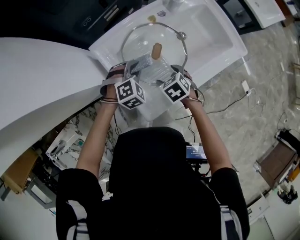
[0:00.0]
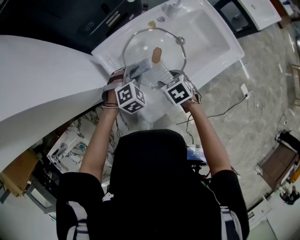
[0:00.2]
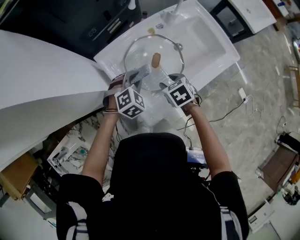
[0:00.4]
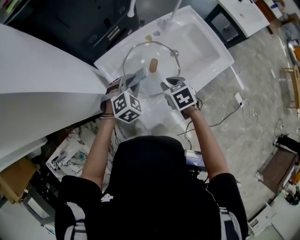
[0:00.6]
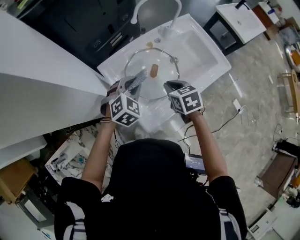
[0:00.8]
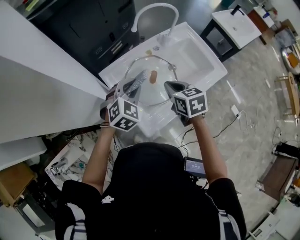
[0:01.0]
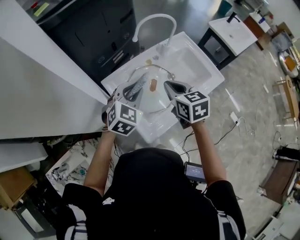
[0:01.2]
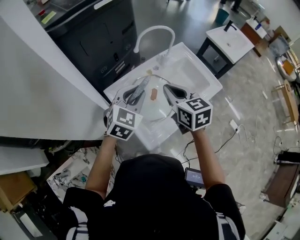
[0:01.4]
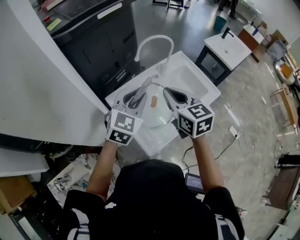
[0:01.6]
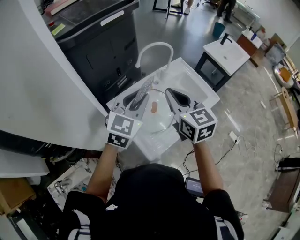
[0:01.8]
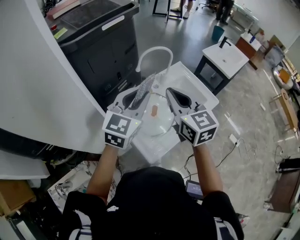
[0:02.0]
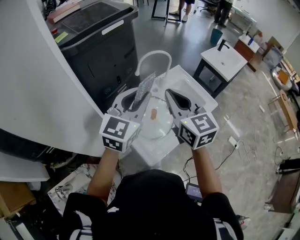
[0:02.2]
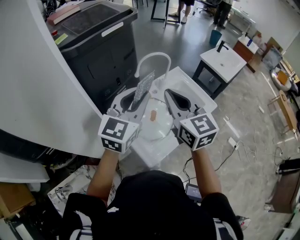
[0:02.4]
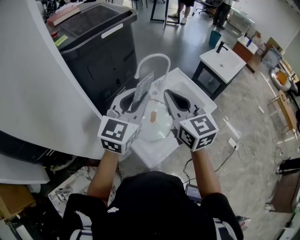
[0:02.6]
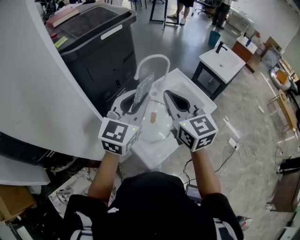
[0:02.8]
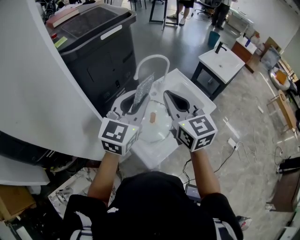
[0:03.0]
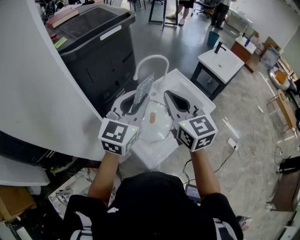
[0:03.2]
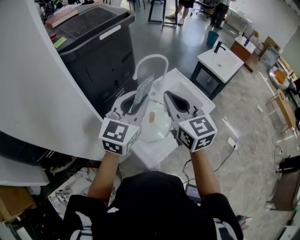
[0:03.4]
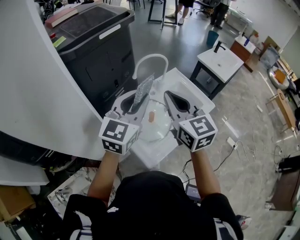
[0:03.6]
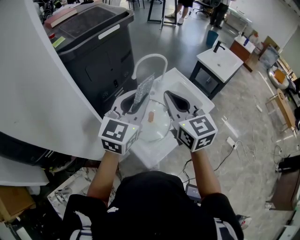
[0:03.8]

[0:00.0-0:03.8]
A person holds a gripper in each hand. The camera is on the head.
0:00.0 to 0:01.2: The two grippers go about 25 cm upward. The left gripper rotates approximately 30 degrees; the right gripper angles its fingers upward, by about 30 degrees, and closes.
0:01.2 to 0:02.6: Both grippers travel together upward, about 20 cm. The right gripper changes its angle by about 30 degrees. The left gripper rotates some 30 degrees.
0:02.6 to 0:03.8: Neither gripper changes place.

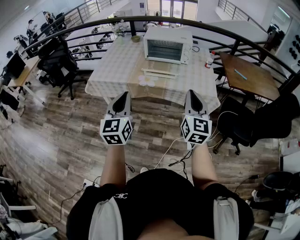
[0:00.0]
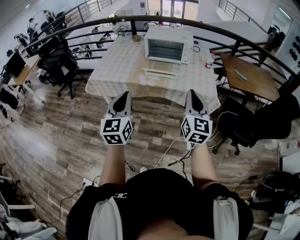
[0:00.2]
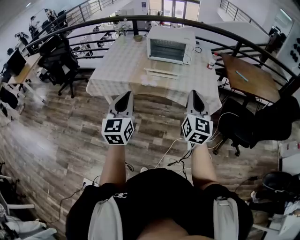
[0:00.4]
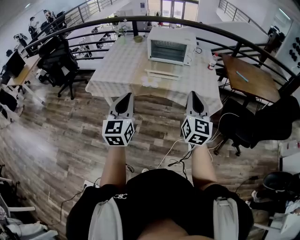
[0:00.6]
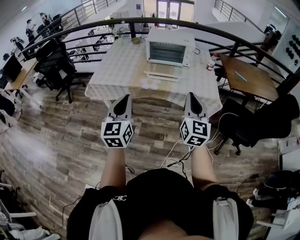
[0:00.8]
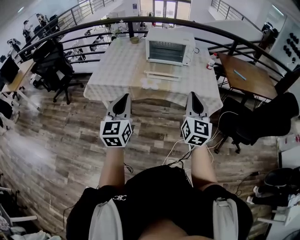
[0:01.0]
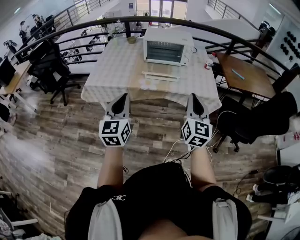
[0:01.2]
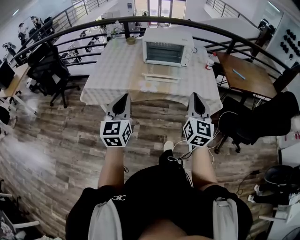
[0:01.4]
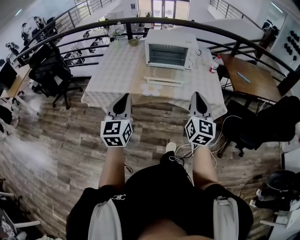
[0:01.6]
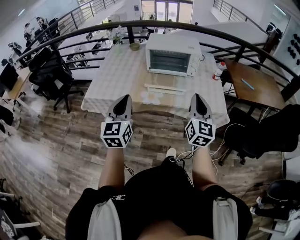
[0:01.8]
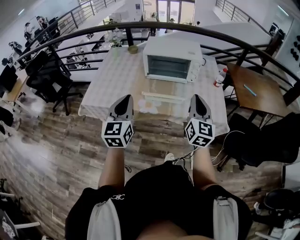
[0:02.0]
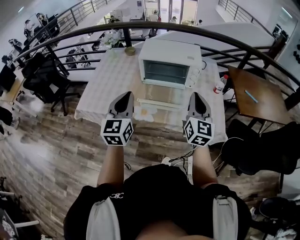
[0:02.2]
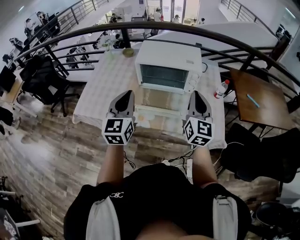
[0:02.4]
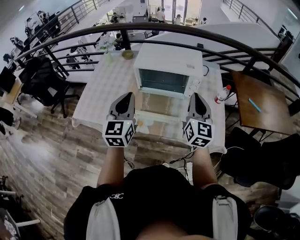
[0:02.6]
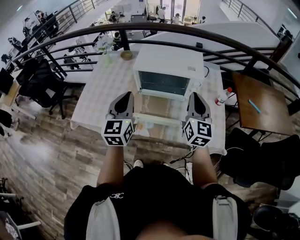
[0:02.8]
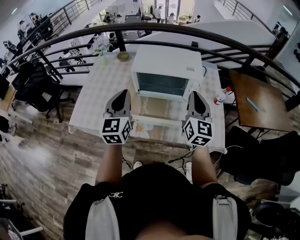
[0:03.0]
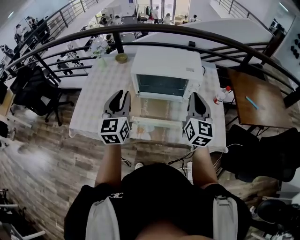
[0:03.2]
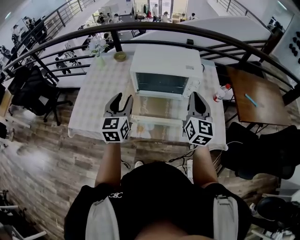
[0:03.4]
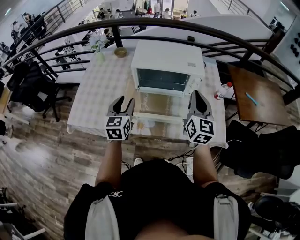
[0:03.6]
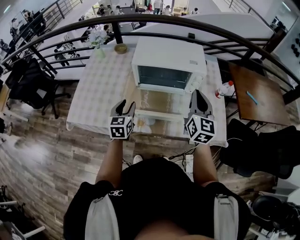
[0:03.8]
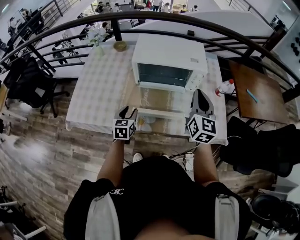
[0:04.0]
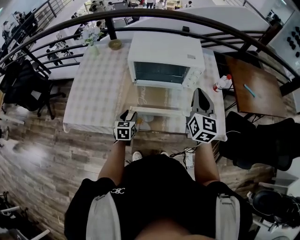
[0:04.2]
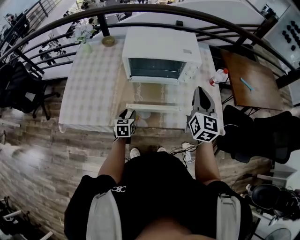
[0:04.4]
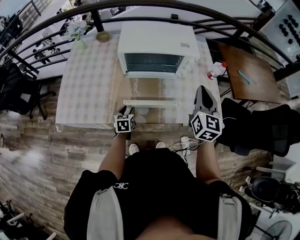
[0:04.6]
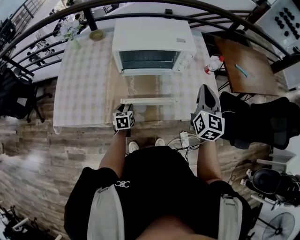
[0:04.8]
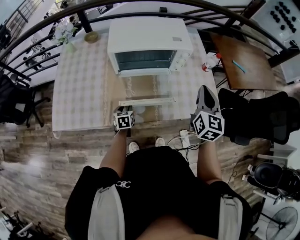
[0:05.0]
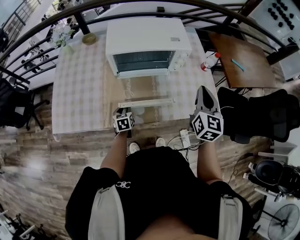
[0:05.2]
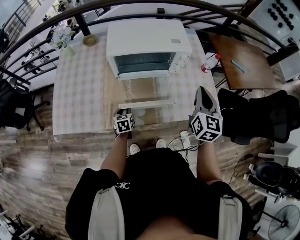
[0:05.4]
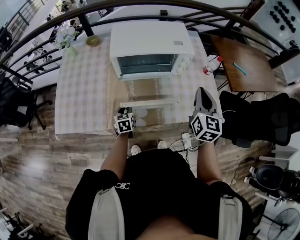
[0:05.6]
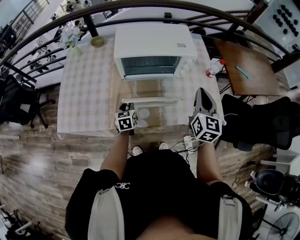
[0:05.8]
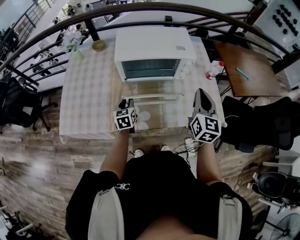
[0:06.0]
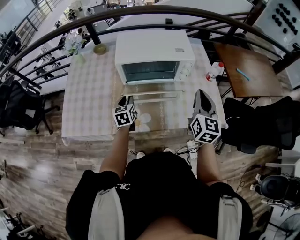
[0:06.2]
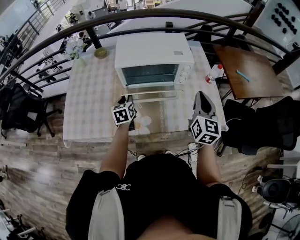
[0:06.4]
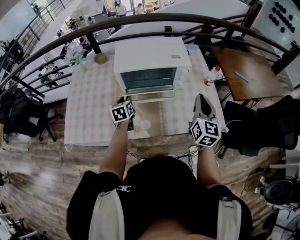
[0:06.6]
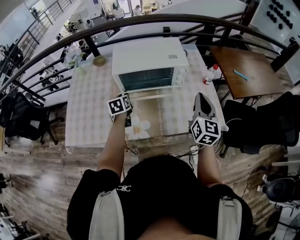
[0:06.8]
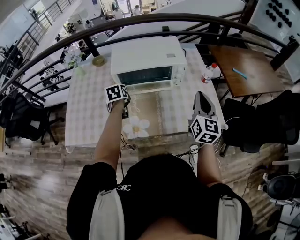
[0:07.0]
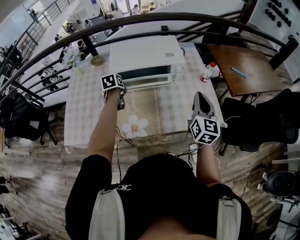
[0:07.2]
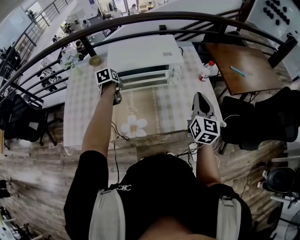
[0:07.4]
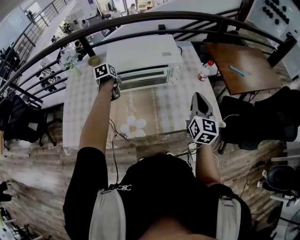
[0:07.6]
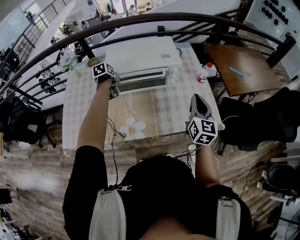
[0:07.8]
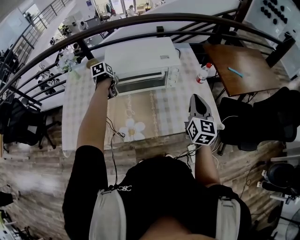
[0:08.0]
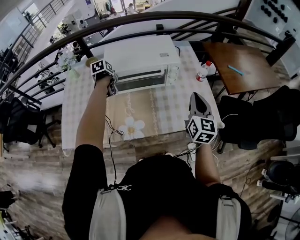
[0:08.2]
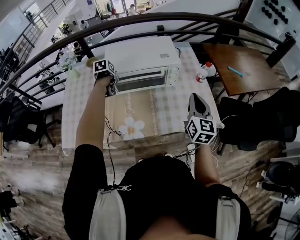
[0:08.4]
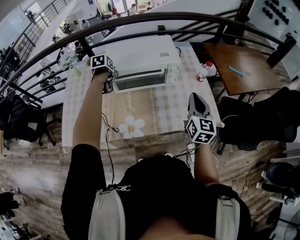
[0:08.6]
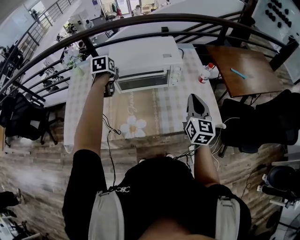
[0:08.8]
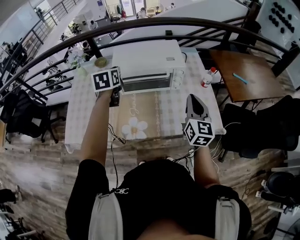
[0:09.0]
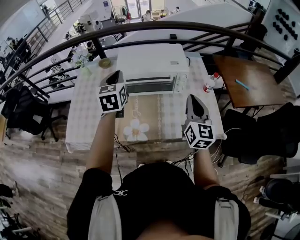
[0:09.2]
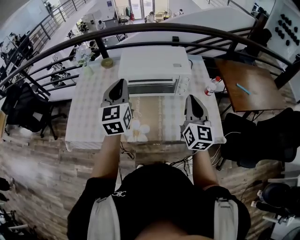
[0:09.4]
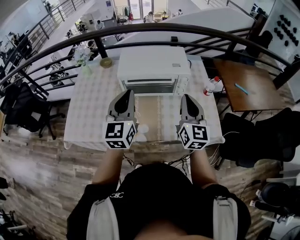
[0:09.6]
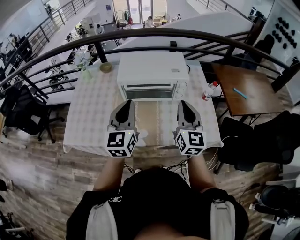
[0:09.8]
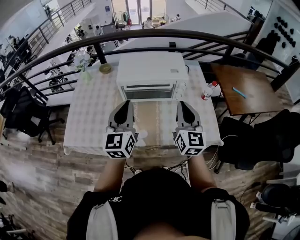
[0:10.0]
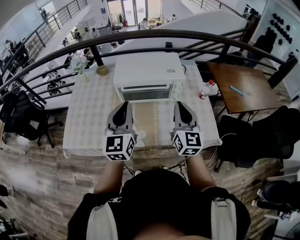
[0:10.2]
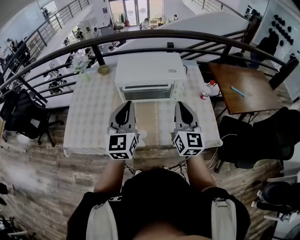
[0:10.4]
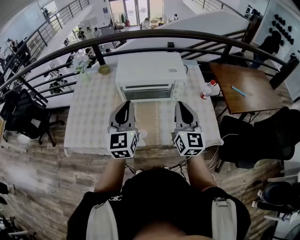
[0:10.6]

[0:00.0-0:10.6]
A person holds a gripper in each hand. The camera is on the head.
0:00.0 to 0:01.6: The two grippers go about 15 cm forward and to the left.
0:01.6 to 0:03.0: The grippers both shift forward by some 35 cm.
0:03.0 to 0:04.6: The right gripper moves downward, approximately 5 cm. Meanwhile the left gripper moves downward, about 35 cm, tilts its fingers approximately 40 degrees downward, and opens.
0:04.6 to 0:06.0: The left gripper goes roughly 10 cm upward and forward.
0:06.0 to 0:07.6: The right gripper shifts by some 5 cm. The left gripper moves forward and upward, roughly 15 cm, and rotates some 30 degrees.
0:07.6 to 0:09.0: The left gripper goes roughly 15 cm upward, and turns by some 30 degrees.
0:09.0 to 0:10.6: The left gripper goes approximately 20 cm backward, and tips its fingers upward by about 30 degrees. Meanwhile the right gripper travels to the left by about 5 cm.

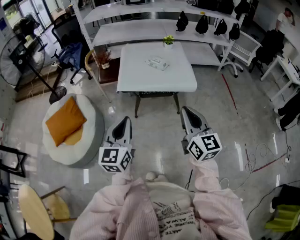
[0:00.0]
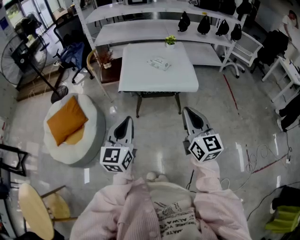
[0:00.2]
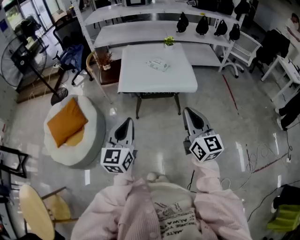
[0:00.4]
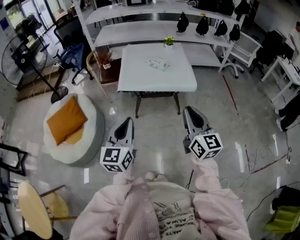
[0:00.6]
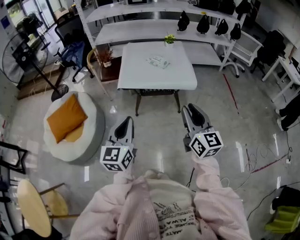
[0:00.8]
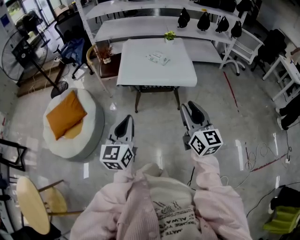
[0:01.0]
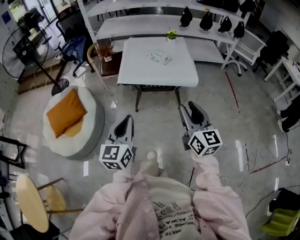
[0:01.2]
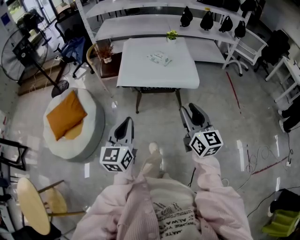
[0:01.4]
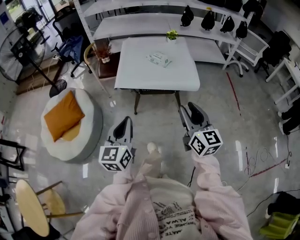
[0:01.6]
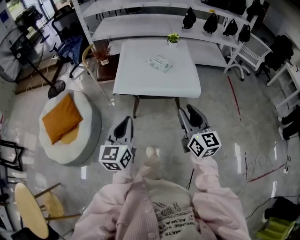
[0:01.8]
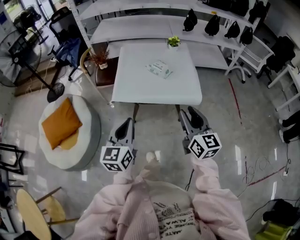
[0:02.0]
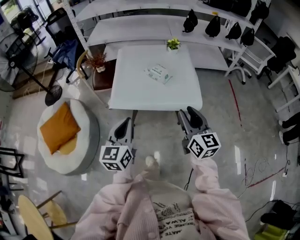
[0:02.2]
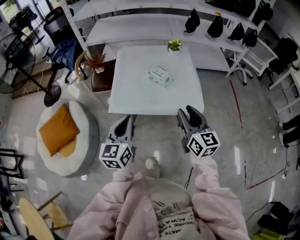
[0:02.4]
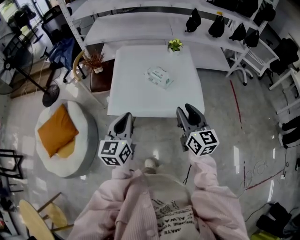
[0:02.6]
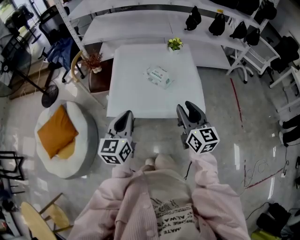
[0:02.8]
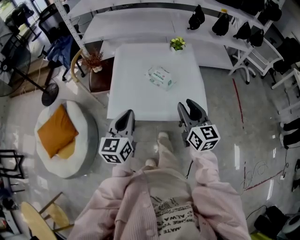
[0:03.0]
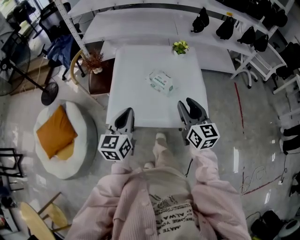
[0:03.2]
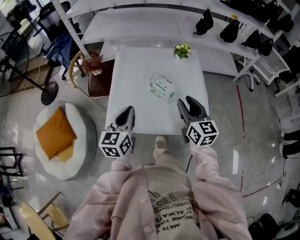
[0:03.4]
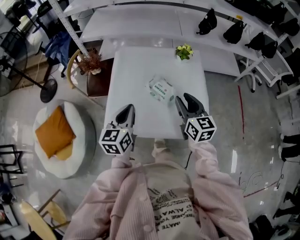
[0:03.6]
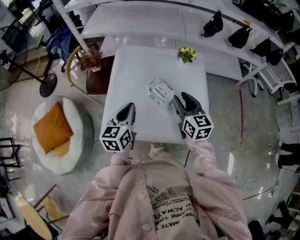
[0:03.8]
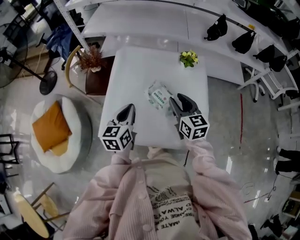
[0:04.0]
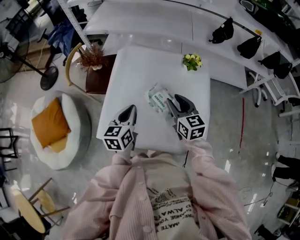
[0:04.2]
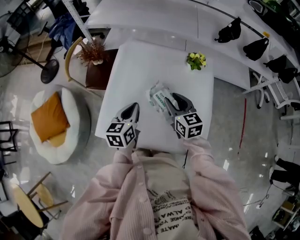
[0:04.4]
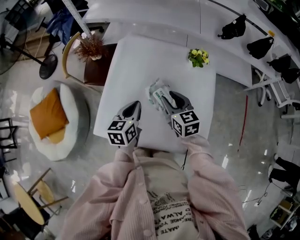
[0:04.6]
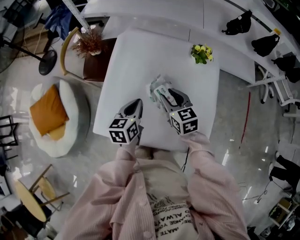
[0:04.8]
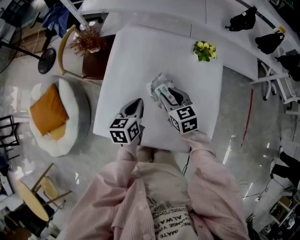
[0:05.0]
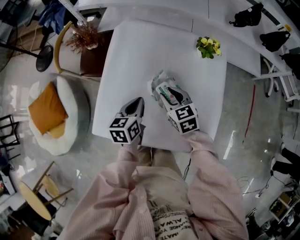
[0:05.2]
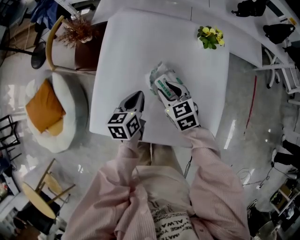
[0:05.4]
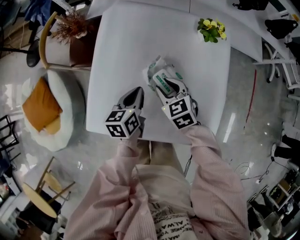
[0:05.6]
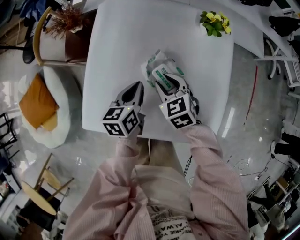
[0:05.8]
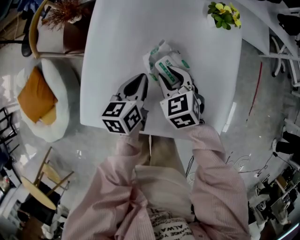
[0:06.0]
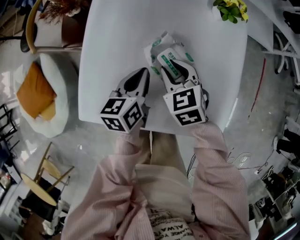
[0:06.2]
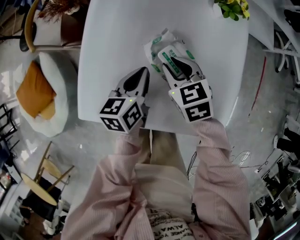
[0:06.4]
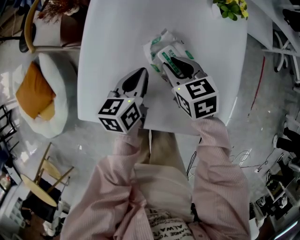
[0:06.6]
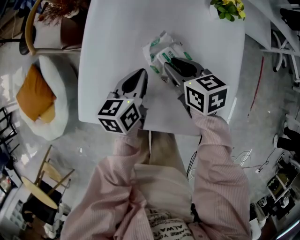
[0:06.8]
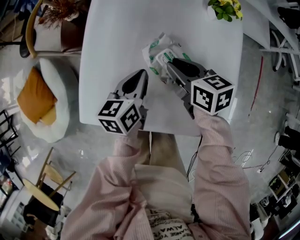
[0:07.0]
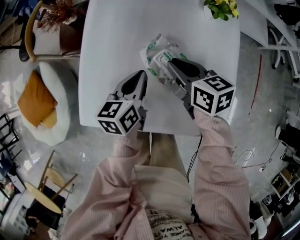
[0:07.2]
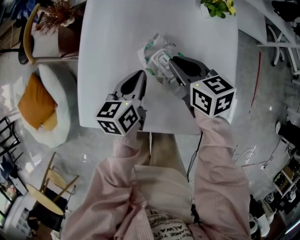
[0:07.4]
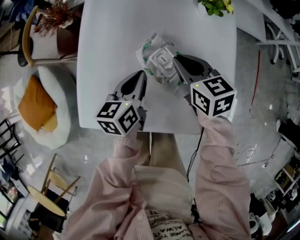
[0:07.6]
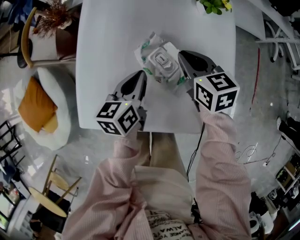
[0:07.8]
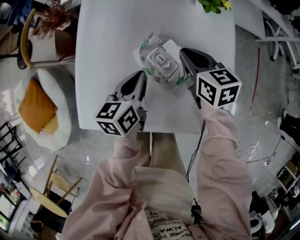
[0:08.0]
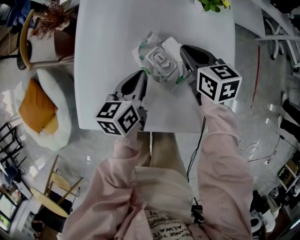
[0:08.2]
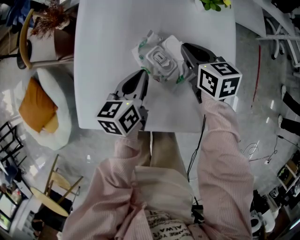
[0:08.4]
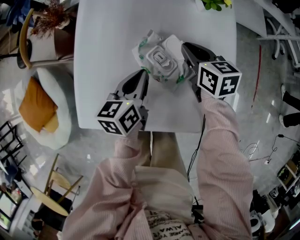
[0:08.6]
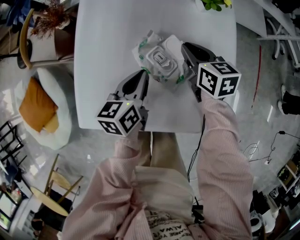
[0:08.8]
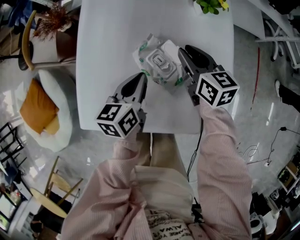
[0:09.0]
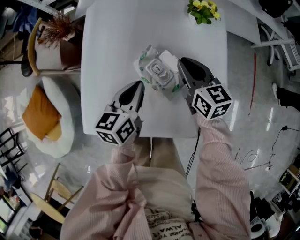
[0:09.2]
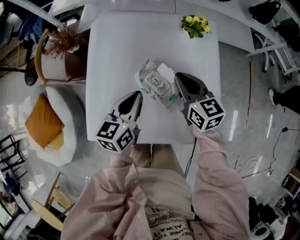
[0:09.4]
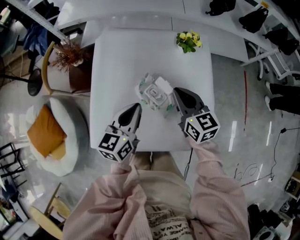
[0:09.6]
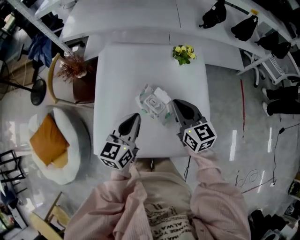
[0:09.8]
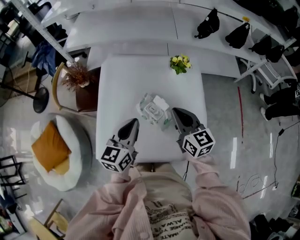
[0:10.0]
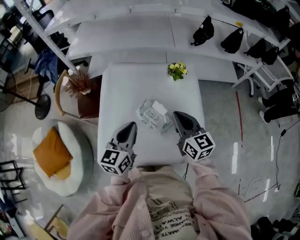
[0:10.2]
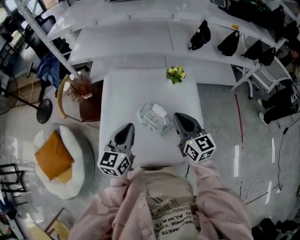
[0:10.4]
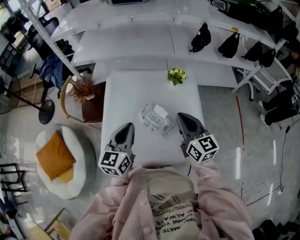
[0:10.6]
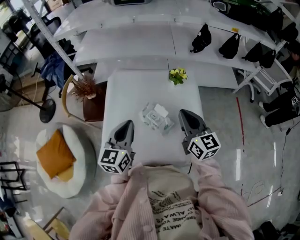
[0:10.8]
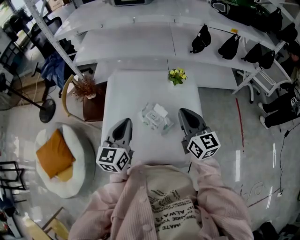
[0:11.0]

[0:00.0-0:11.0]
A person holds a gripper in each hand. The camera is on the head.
0:00.0 to 0:01.6: The left gripper moves approximately 5 cm; the right gripper heads forward and downward, covering roughly 10 cm, and opens up.
0:01.6 to 0:03.2: Both grippers move forward, approximately 35 cm.
0:03.2 to 0:04.8: Both grippers travel together forward and downward, about 30 cm. The right gripper swivels roughly 30 degrees. Meanwhile the left gripper swivels some 20 degrees.
0:04.8 to 0:06.2: Both grippers travel together downward, some 10 cm. The right gripper rotates roughly 20 degrees.
0:06.2 to 0:07.8: The right gripper moves to the right, some 10 cm, changes its angle by roughly 20 degrees, and closes its fingers.
0:07.8 to 0:09.4: Both grippers move upward, some 10 cm.
0:09.4 to 0:11.0: The left gripper travels upward by about 15 cm, and rotates approximately 20 degrees; the right gripper travels upward and backward by roughly 20 cm, and rotates roughly 20 degrees.
